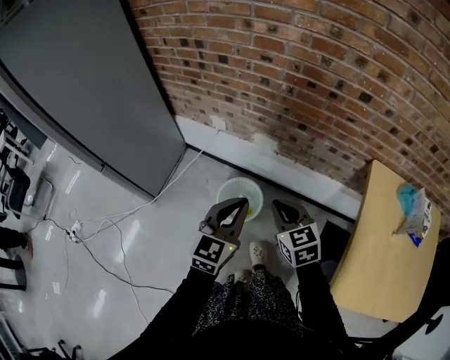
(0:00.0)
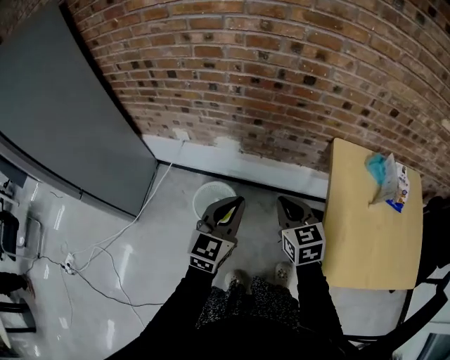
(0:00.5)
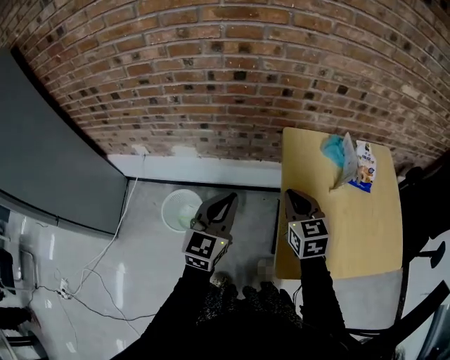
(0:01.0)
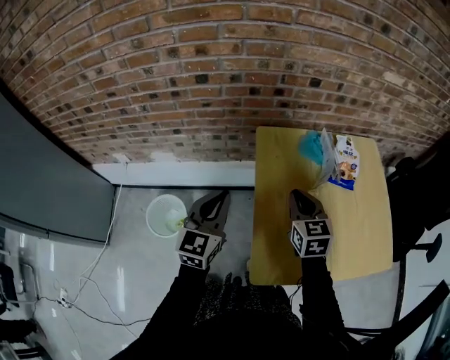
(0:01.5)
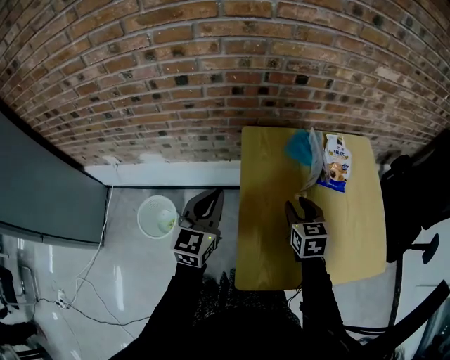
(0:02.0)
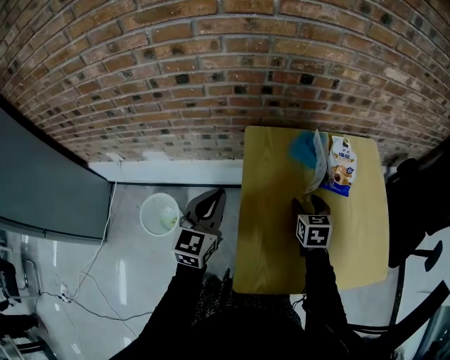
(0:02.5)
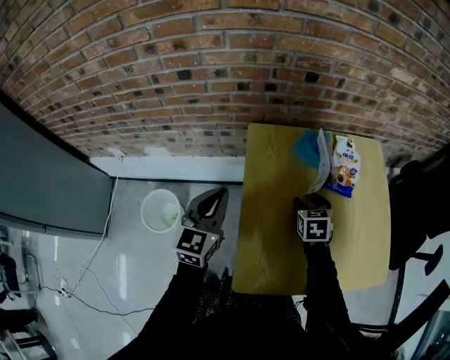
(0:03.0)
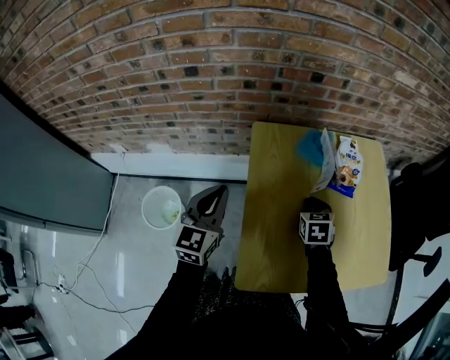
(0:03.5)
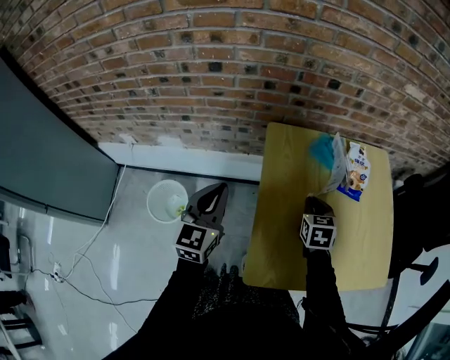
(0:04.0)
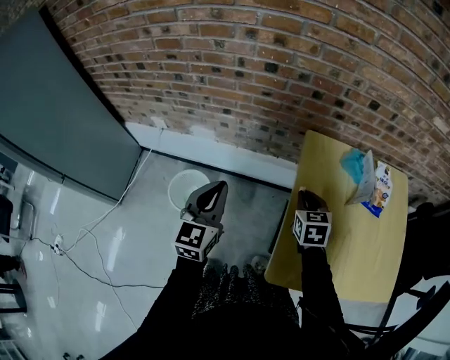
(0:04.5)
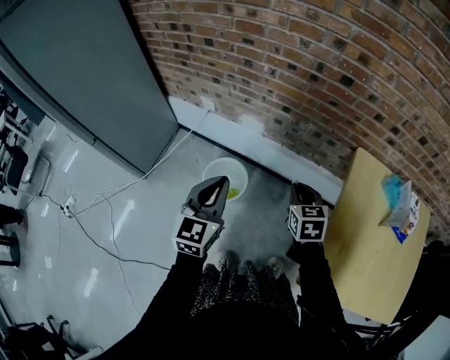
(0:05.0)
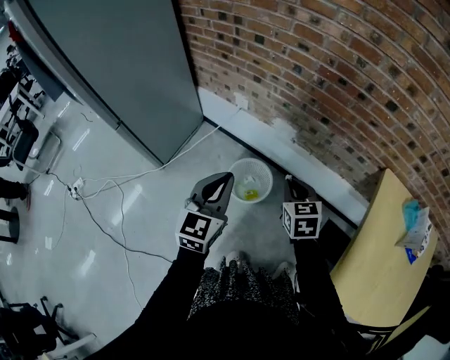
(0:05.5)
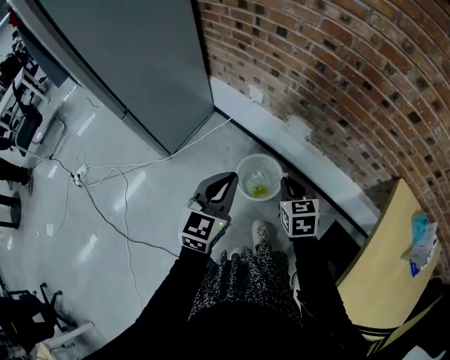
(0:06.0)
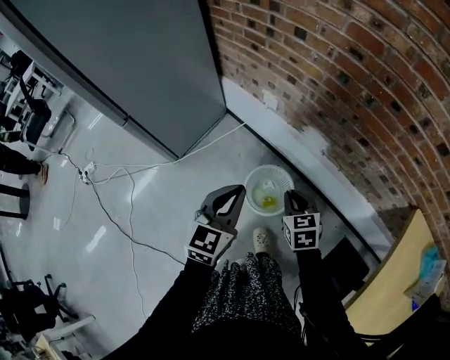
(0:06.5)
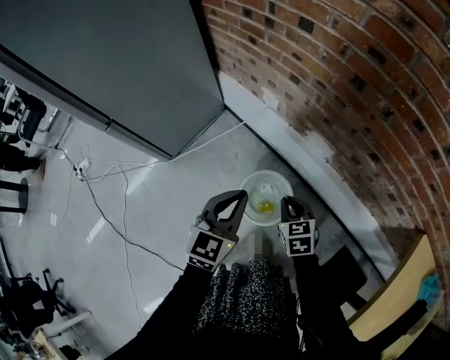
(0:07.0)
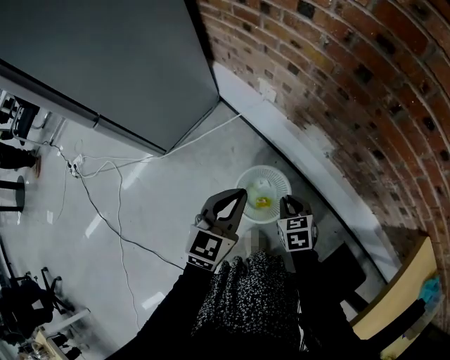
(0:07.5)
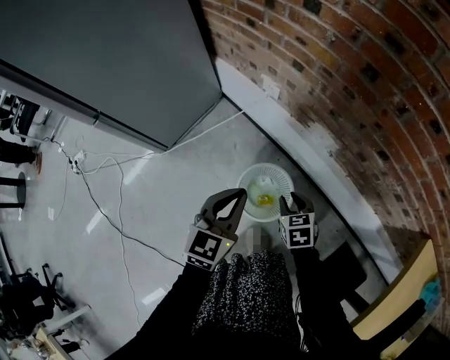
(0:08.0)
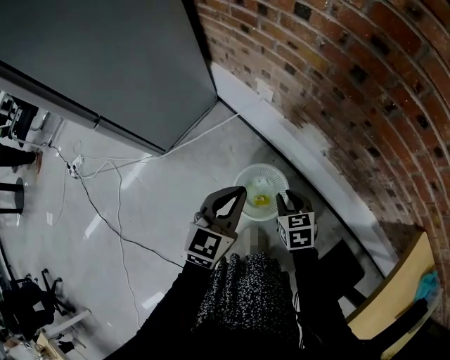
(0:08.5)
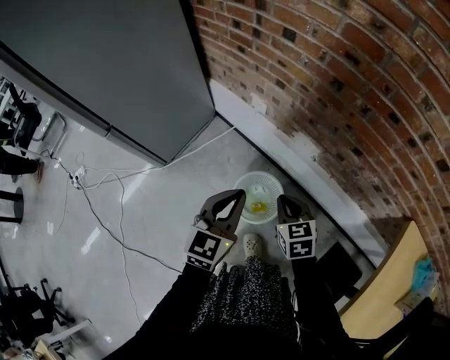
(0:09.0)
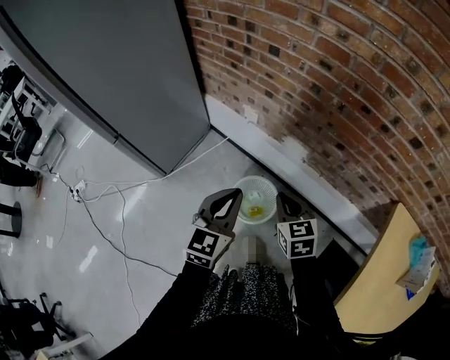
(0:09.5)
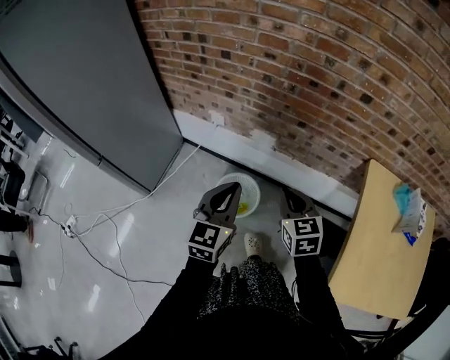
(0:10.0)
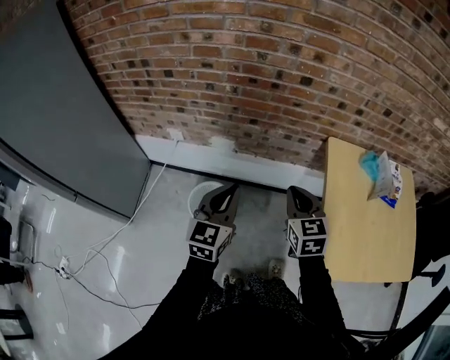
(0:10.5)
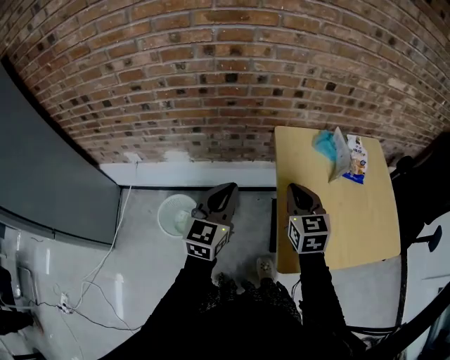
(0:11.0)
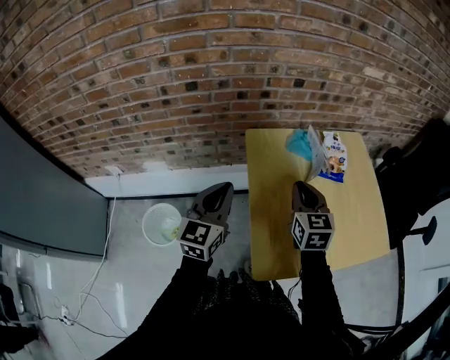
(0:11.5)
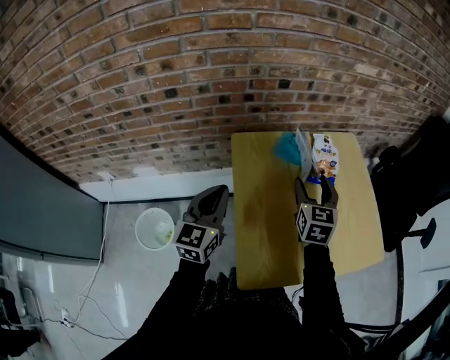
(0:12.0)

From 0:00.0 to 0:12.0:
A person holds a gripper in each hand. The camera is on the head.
From 0:00.0 to 0:02.0: The right gripper moves roughly 5 cm upward and comes back, changes its angle by about 40 degrees, and opens its fingers; the left gripper moves about 40 cm.
From 0:02.0 to 0:04.0: The right gripper closes.
From 0:04.0 to 0:06.0: Both grippers are carried some 50 cm. The left gripper swivels approximately 30 degrees. The right gripper swivels approximately 50 degrees.
From 0:06.0 to 0:08.0: The two grippers go about 25 cm downward and forward.
From 0:08.0 to 0:10.0: The grippers both shift upward and backward by approximately 30 cm. The right gripper changes its angle by about 30 degrees.
From 0:10.0 to 0:12.0: Both grippers are carried roughly 50 cm. The left gripper changes its angle by some 30 degrees. The right gripper changes its angle by roughly 50 degrees, and opens its fingers.

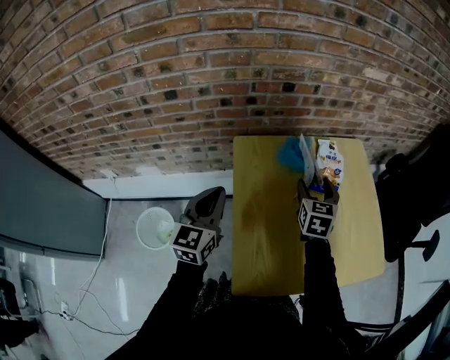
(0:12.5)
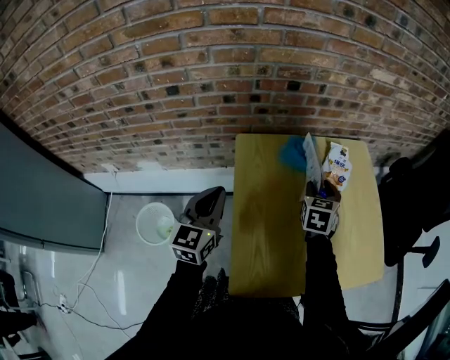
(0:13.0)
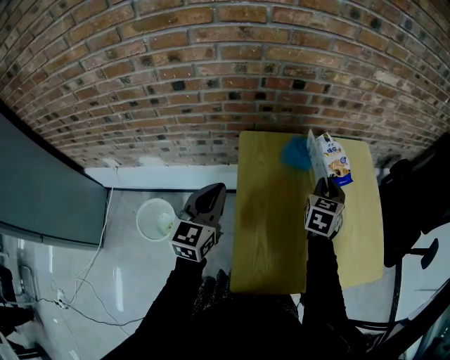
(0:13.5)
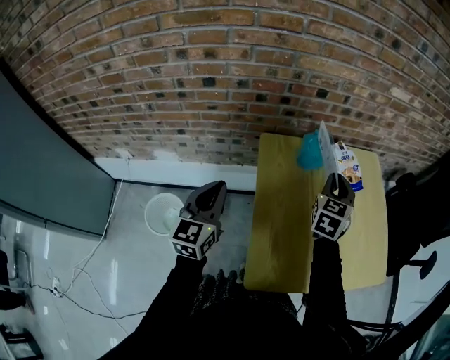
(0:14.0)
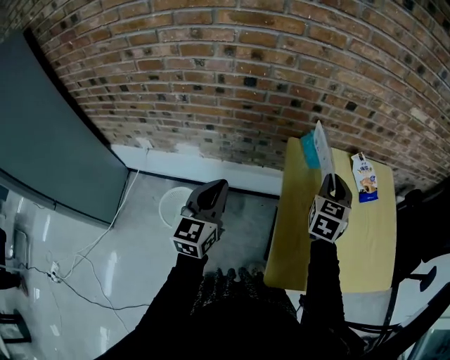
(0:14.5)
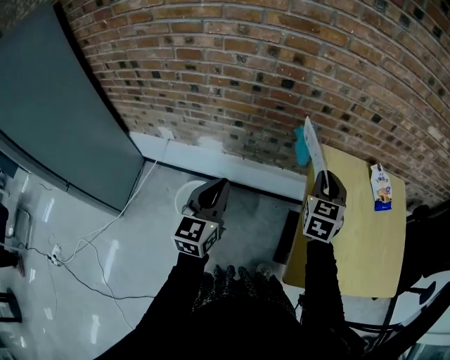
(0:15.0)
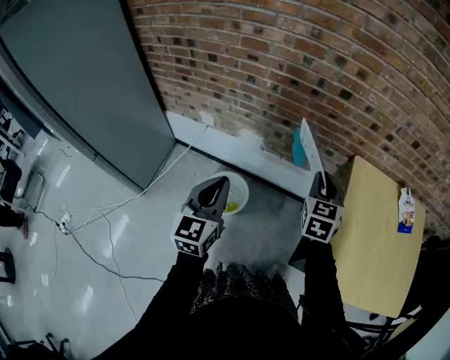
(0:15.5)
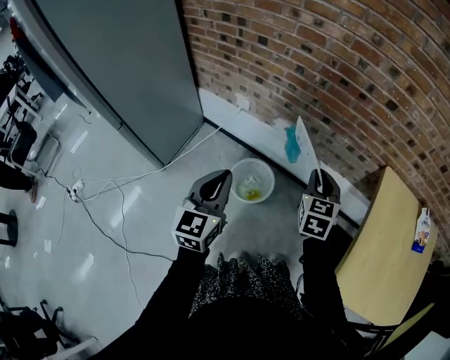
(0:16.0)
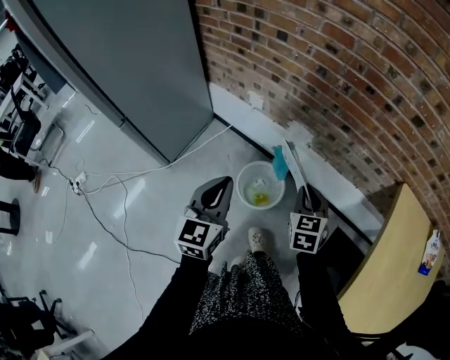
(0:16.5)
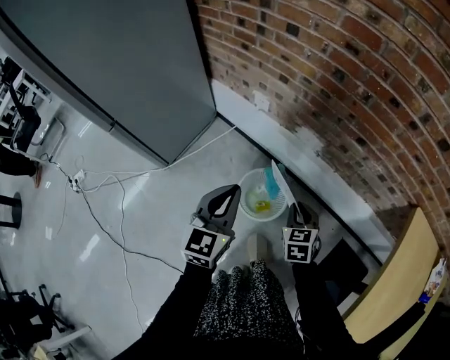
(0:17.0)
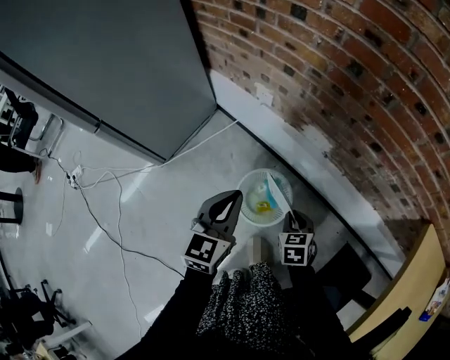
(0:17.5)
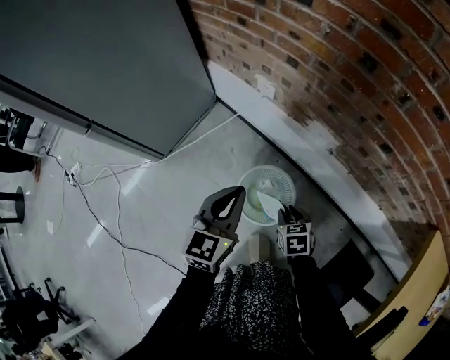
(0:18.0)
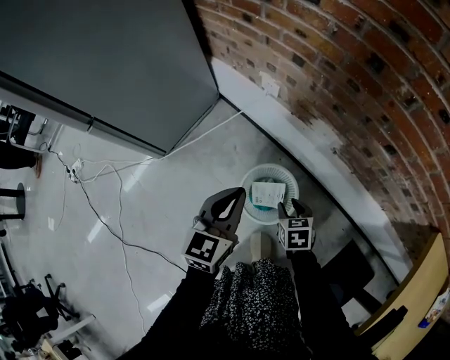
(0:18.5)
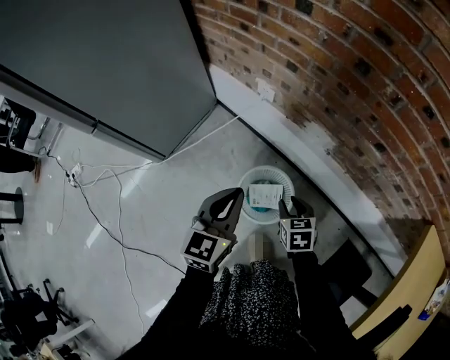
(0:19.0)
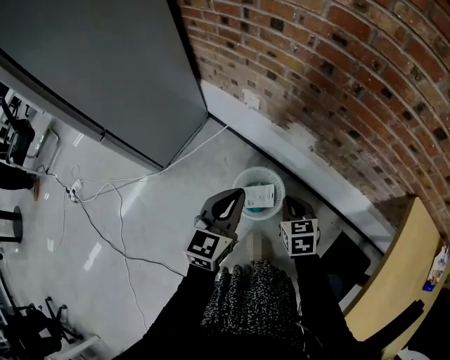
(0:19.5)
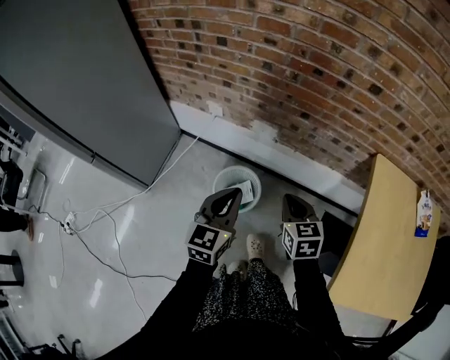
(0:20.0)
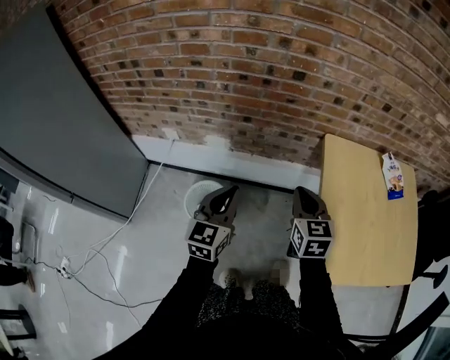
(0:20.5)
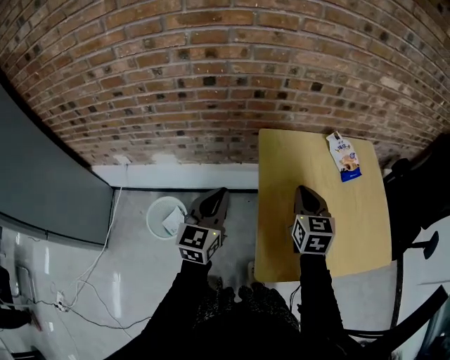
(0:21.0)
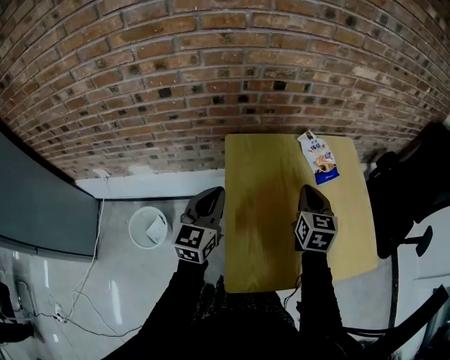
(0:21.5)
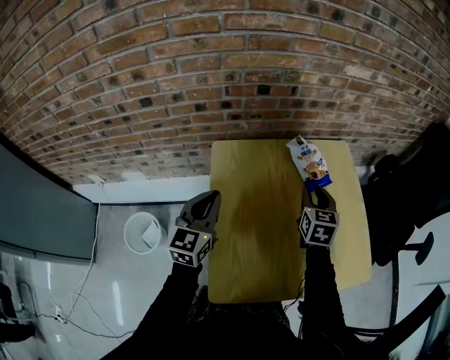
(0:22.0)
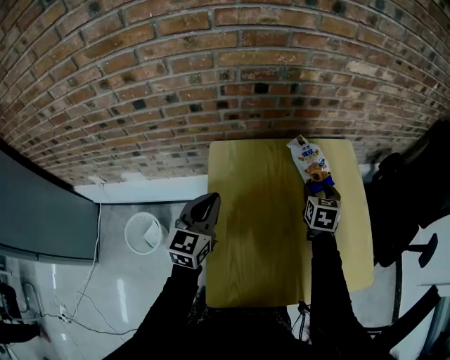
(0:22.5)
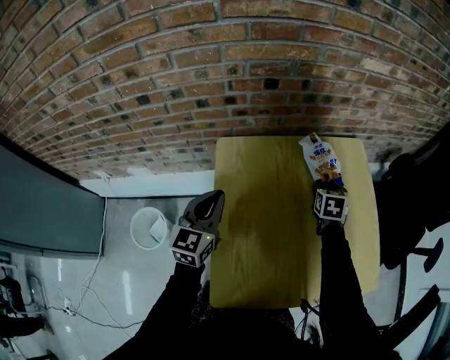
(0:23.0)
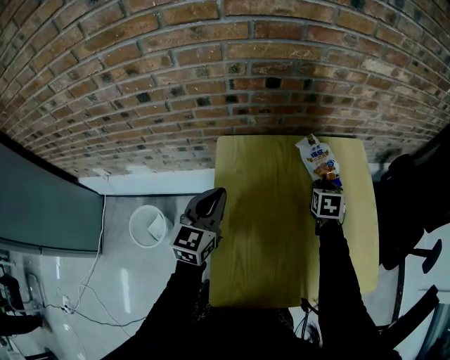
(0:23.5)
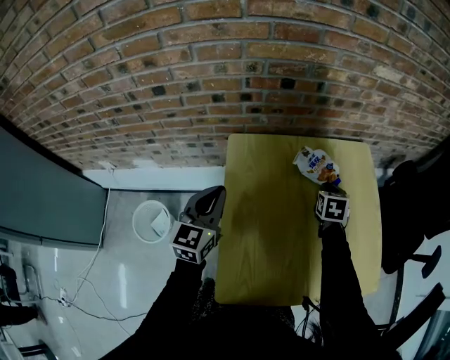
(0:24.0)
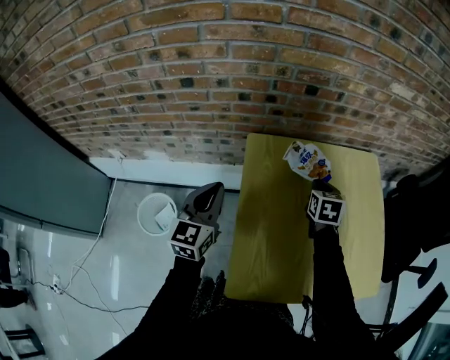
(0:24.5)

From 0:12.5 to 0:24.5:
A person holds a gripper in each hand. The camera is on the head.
From 0:12.5 to 0:14.5: The left gripper shifts roughly 20 cm to the left and backward. Meanwhile the right gripper travels to the left, upward and backward by about 15 cm, and closes.
From 0:14.5 to 0:16.5: The left gripper changes place by some 40 cm, and turns by some 30 degrees, while the right gripper shifts by some 50 cm, and turns by roughly 40 degrees.
From 0:16.5 to 0:18.5: The left gripper shifts about 20 cm downward and forward. Meanwhile the right gripper shifts approximately 30 cm downward, and changes its angle by roughly 30 degrees.
From 0:18.5 to 0:20.5: The left gripper moves roughly 35 cm, and swivels approximately 30 degrees, while the right gripper heads upward, covering about 40 cm, tips its fingers upward by roughly 30 degrees, and closes.
From 0:20.5 to 0:22.5: The two grippers go approximately 40 cm to the right and forward. The right gripper rotates some 30 degrees, and opens.
From 0:22.5 to 0:24.5: Both grippers travel together to the left, some 10 cm. The right gripper closes.

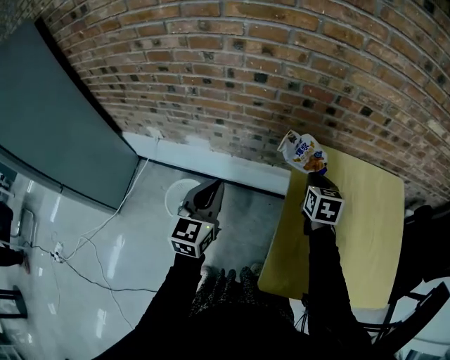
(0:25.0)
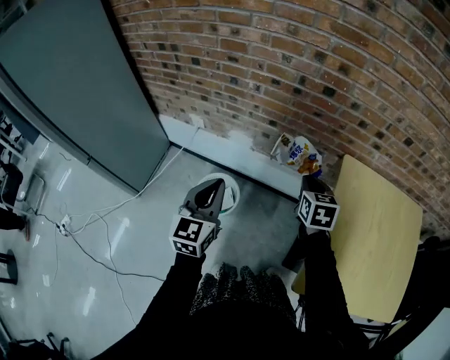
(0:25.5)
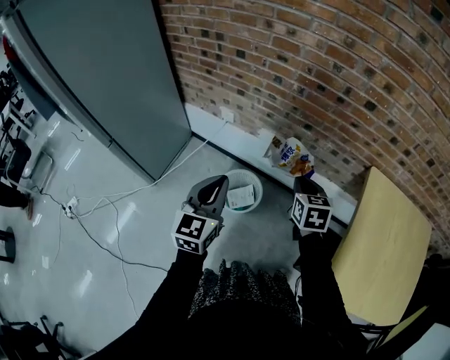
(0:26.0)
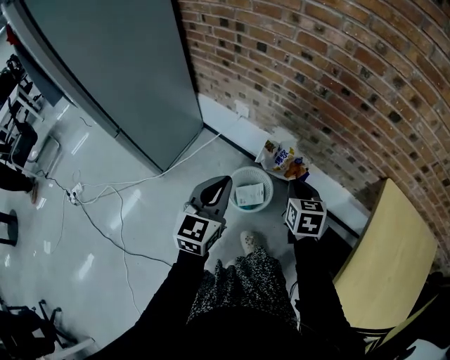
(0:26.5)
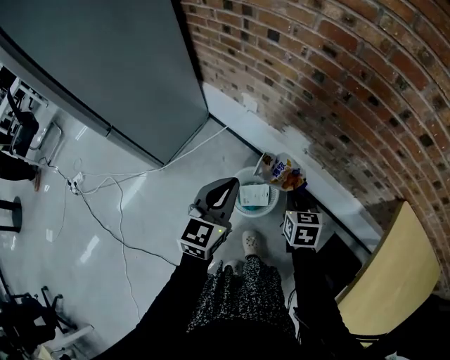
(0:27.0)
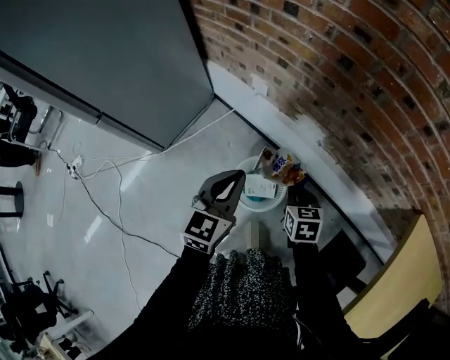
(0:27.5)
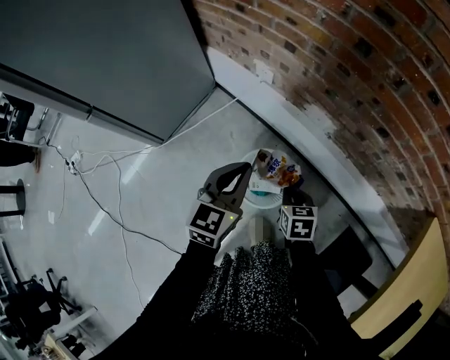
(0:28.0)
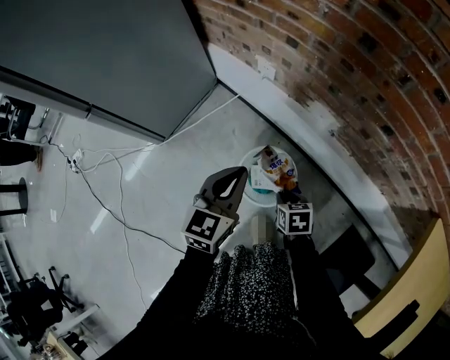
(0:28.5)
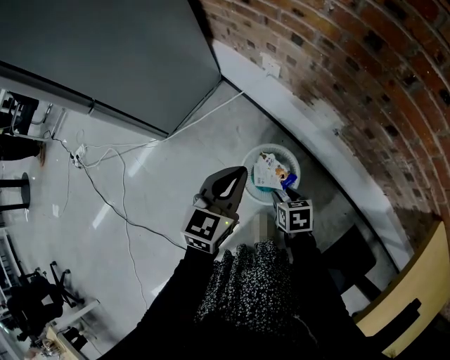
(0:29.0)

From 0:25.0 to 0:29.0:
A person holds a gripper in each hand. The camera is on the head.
From 0:25.0 to 0:27.0: The right gripper ends up about 50 cm from where it was, and rotates approximately 30 degrees, while the left gripper shifts by roughly 35 cm, and changes its angle by some 20 degrees.
From 0:27.0 to 0:29.0: The left gripper shifts some 15 cm downward; the right gripper heads downward, covering about 20 cm, turns by approximately 30 degrees, and opens up.
